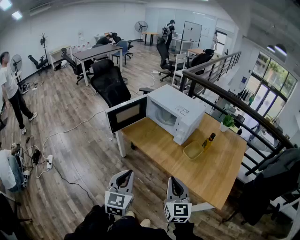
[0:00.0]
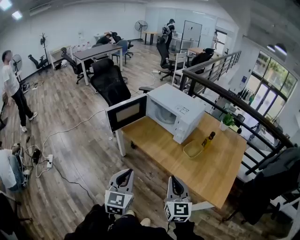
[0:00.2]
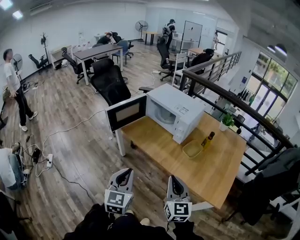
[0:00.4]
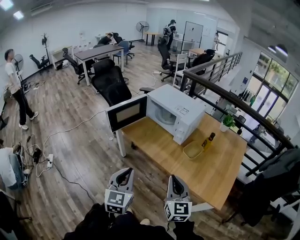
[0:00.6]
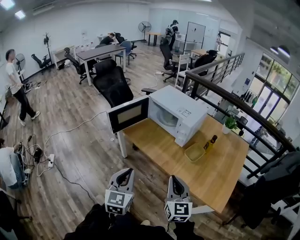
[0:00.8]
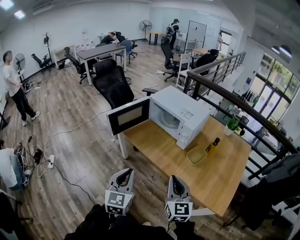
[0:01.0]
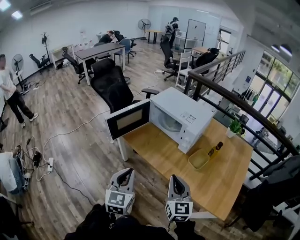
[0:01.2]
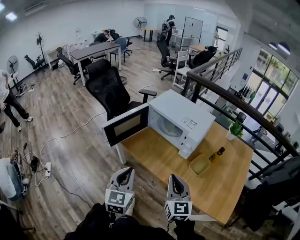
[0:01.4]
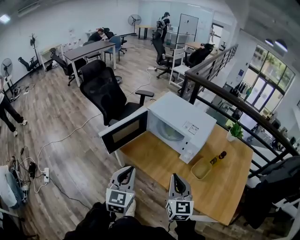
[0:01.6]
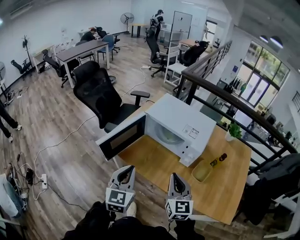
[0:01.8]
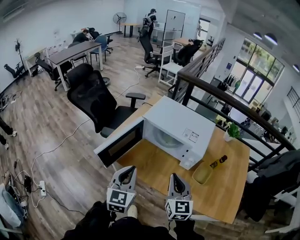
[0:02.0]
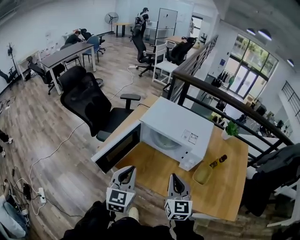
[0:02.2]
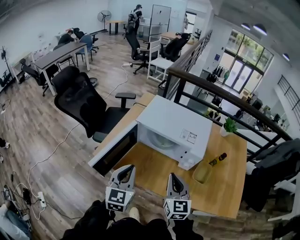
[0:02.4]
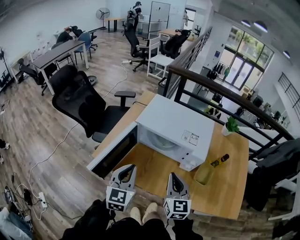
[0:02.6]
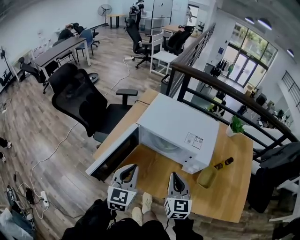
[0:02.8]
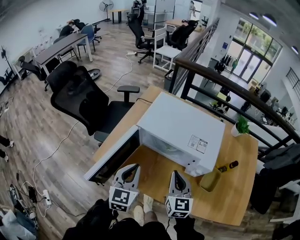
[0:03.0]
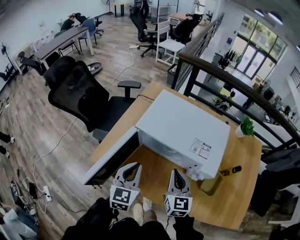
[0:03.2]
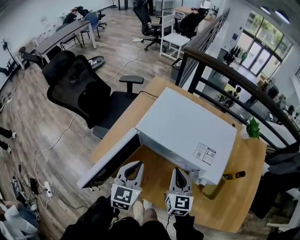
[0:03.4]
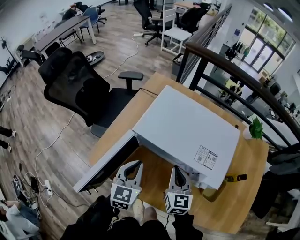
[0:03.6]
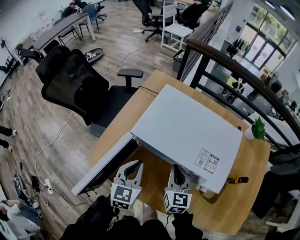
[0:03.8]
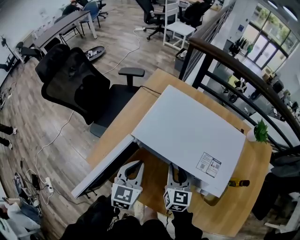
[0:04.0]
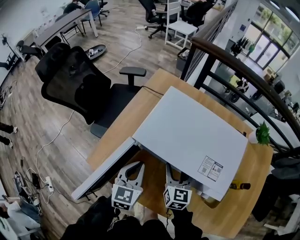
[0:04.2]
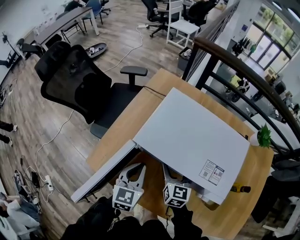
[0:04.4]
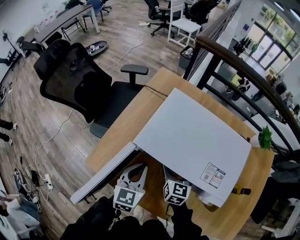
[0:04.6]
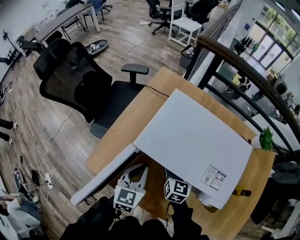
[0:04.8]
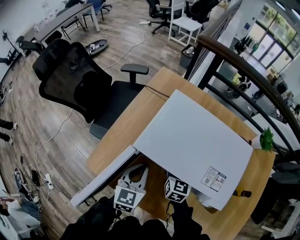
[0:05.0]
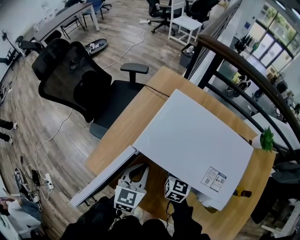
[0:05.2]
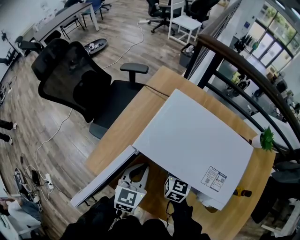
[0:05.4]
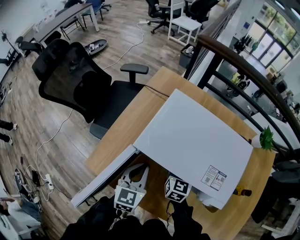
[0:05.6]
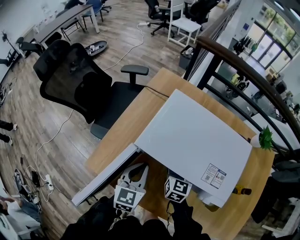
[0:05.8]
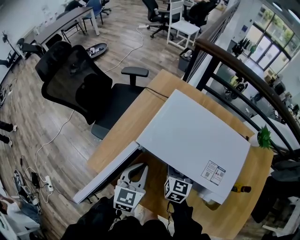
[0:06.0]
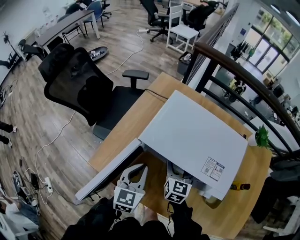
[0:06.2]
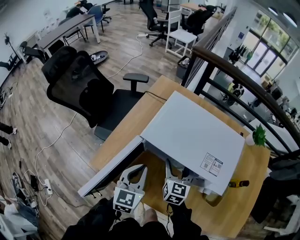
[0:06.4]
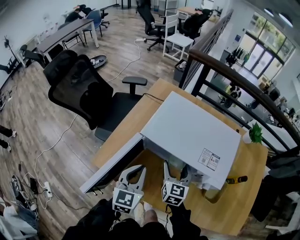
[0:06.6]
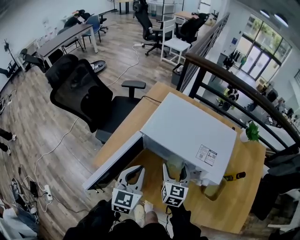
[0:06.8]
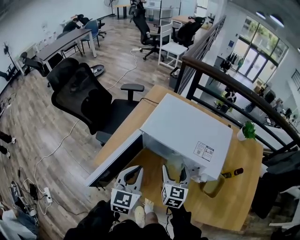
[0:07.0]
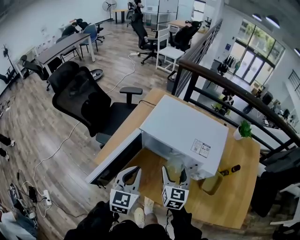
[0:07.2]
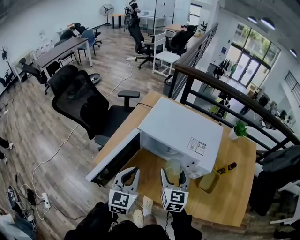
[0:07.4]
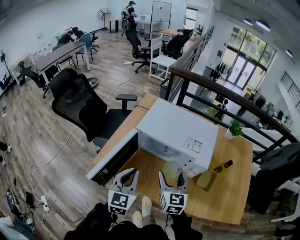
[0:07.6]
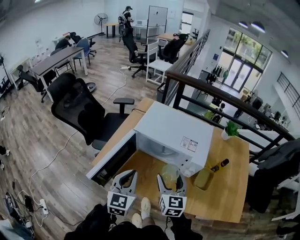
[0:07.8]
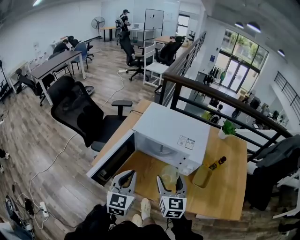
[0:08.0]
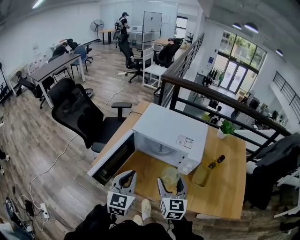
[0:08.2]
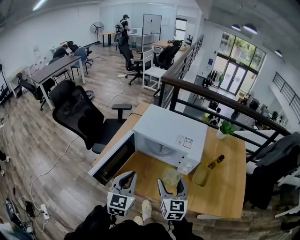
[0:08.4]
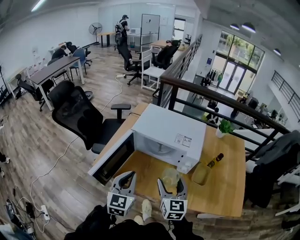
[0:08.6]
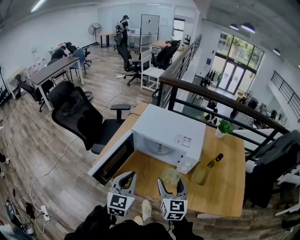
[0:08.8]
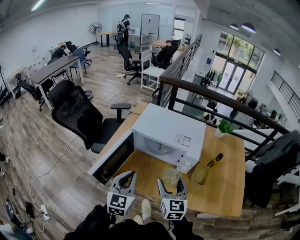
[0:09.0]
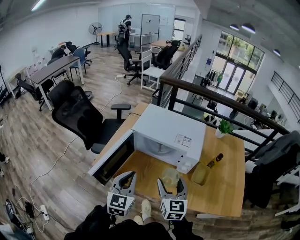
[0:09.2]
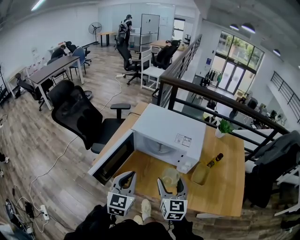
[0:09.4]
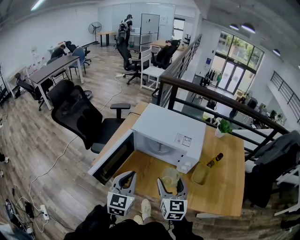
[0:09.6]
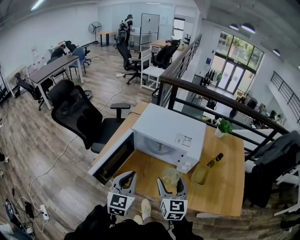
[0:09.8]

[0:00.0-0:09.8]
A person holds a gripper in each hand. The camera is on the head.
0:00.0 to 0:01.4: The two grippers go roughly 20 cm forward.
0:01.4 to 0:02.8: The grippers both shift forward by some 30 cm.
0:02.8 to 0:04.2: Both grippers move forward and downward, about 25 cm. The right gripper opens its fingers.
0:04.2 to 0:05.6: The right gripper moves forward, some 5 cm.
0:05.6 to 0:07.0: Both grippers travel together backward and upward, roughly 20 cm.
0:07.0 to 0:08.4: Both grippers move backward and upward, some 20 cm.
0:08.4 to 0:09.8: Neither gripper changes place.

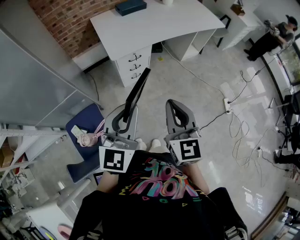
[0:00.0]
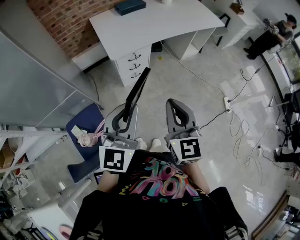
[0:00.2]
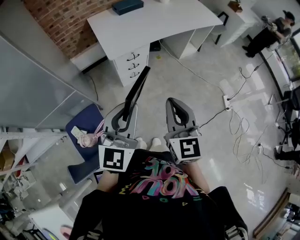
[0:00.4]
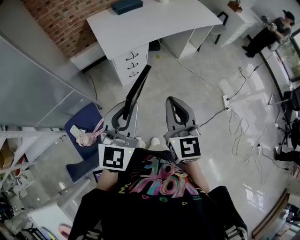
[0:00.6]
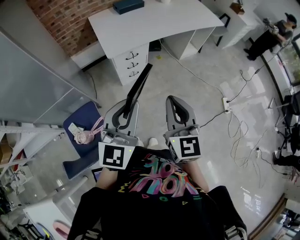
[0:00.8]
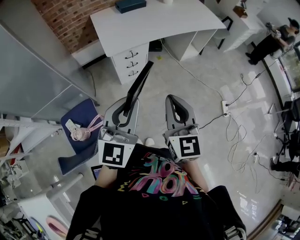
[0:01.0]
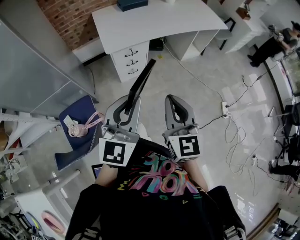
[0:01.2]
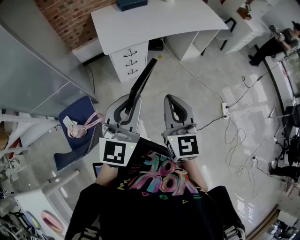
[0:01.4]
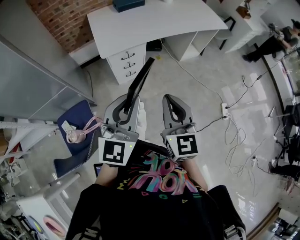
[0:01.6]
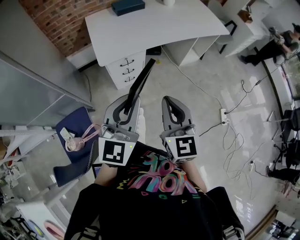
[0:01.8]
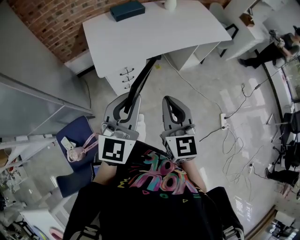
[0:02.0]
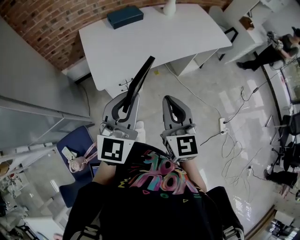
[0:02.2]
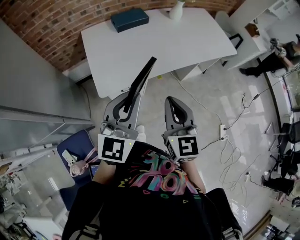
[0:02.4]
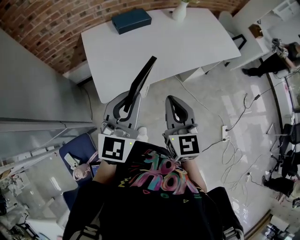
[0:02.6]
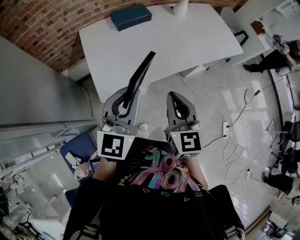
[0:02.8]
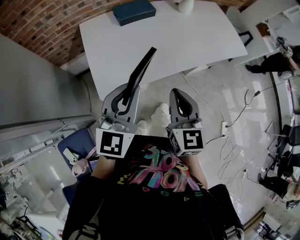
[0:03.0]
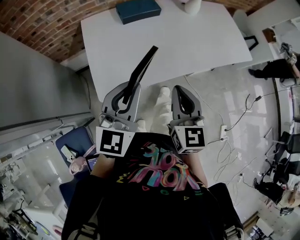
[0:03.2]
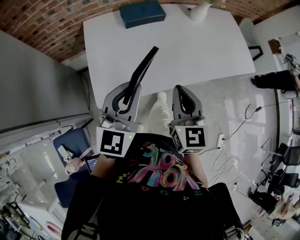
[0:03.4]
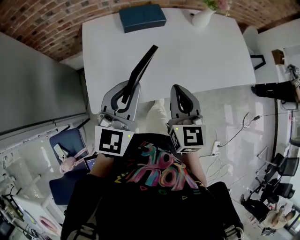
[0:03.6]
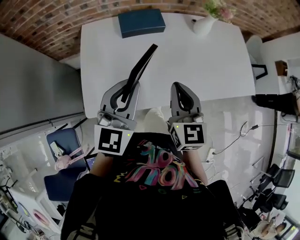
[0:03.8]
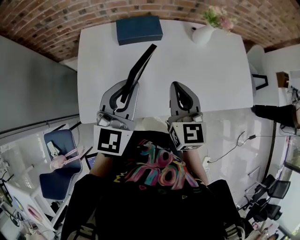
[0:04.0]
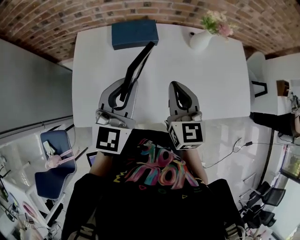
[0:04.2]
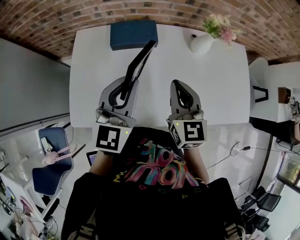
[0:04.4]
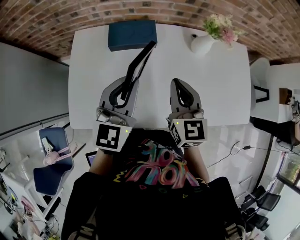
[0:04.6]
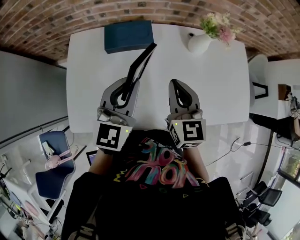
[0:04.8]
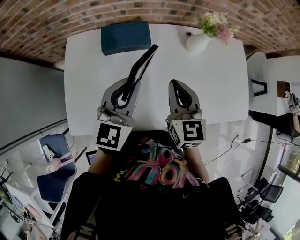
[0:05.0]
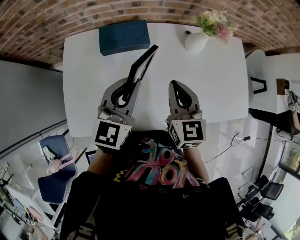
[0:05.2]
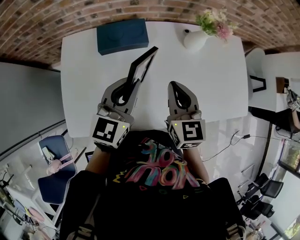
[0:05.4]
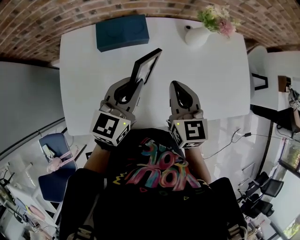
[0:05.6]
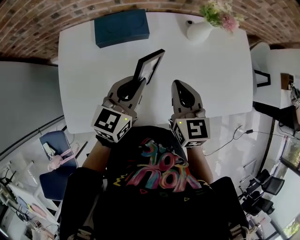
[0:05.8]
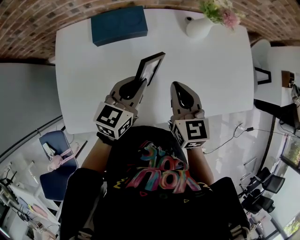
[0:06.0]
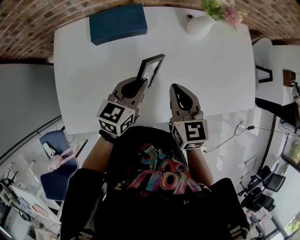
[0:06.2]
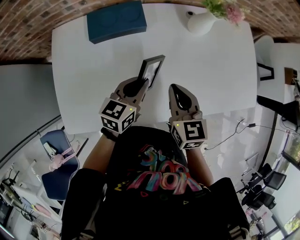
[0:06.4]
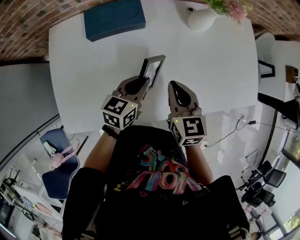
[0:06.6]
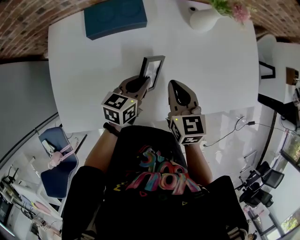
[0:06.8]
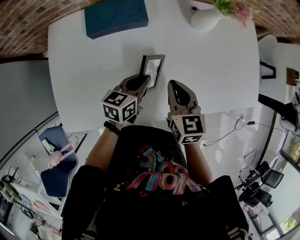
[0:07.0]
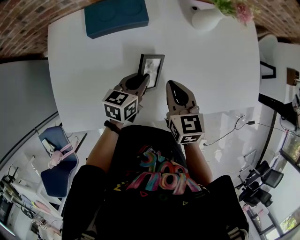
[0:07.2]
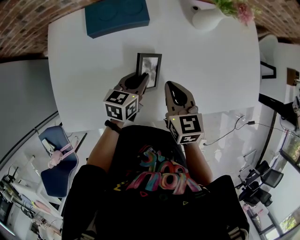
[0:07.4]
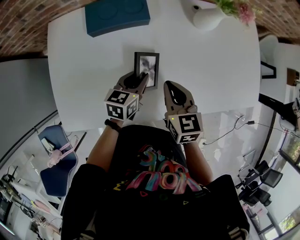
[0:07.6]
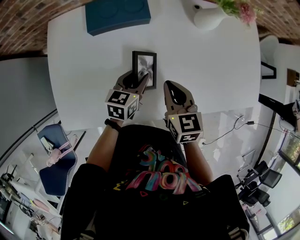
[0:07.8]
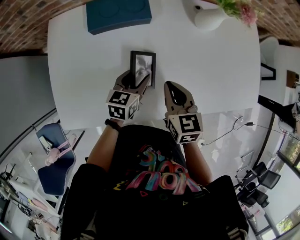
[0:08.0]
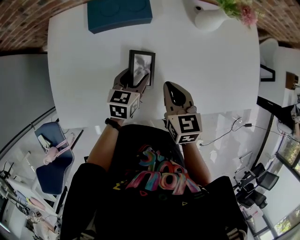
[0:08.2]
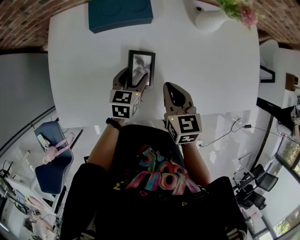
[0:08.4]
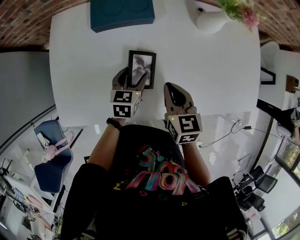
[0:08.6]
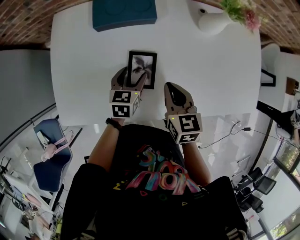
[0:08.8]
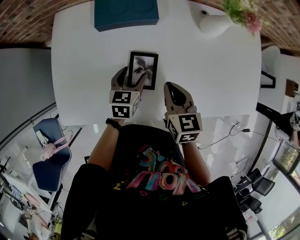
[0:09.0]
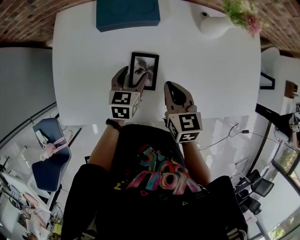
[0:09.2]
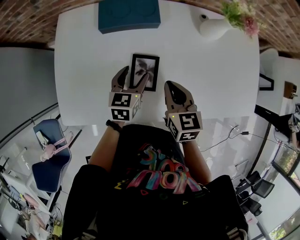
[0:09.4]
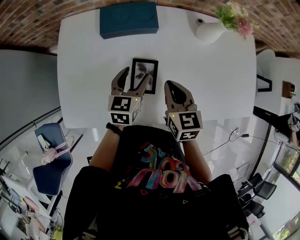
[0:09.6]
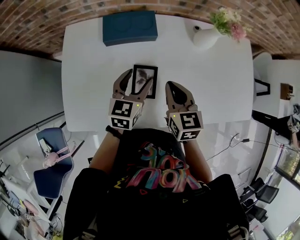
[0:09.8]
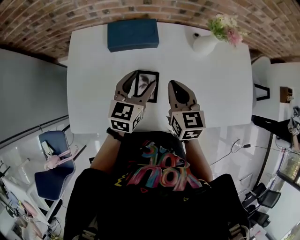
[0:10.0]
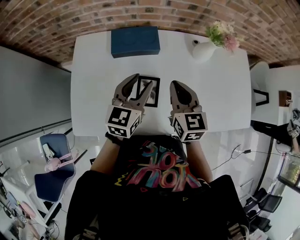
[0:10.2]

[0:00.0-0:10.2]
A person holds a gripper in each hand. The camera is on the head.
0:00.0 to 0:01.4: The grippers both shift to the right by some 10 cm.
0:01.4 to 0:03.0: The two grippers travel together, forward, approximately 50 cm.
0:03.0 to 0:04.4: Both grippers move forward and to the right, some 40 cm. The right gripper turns by some 20 degrees. The left gripper swivels some 20 degrees.
0:04.4 to 0:05.8: The right gripper shifts roughly 5 cm downward; the left gripper shifts roughly 10 cm downward, and turns by some 30 degrees.
0:05.8 to 0:07.2: The left gripper travels downward by roughly 15 cm, and swivels approximately 20 degrees; the right gripper travels downward by roughly 10 cm.
0:07.2 to 0:08.8: The left gripper is displaced to the left by roughly 5 cm, rotates about 20 degrees, and opens up.
0:08.8 to 0:10.2: The right gripper travels upward by some 15 cm. Meanwhile the left gripper moves upward, roughly 20 cm, and swivels roughly 30 degrees.

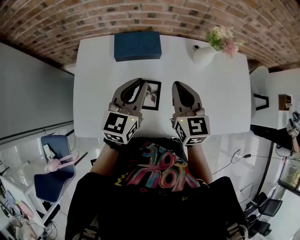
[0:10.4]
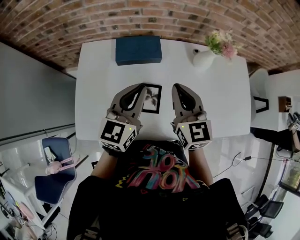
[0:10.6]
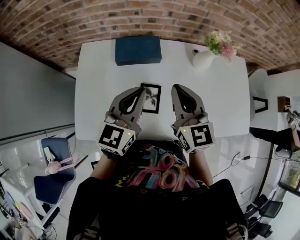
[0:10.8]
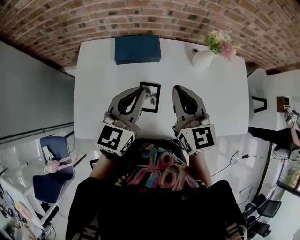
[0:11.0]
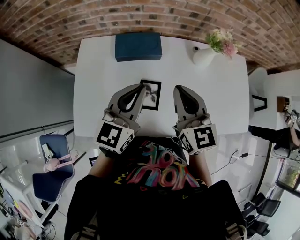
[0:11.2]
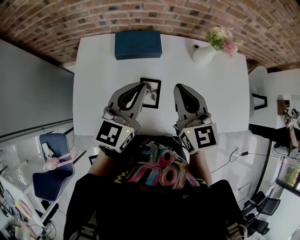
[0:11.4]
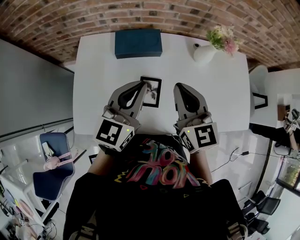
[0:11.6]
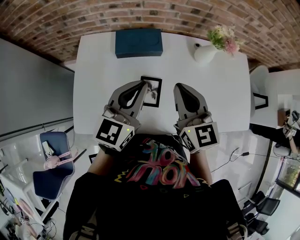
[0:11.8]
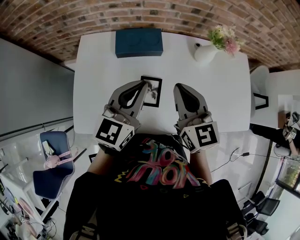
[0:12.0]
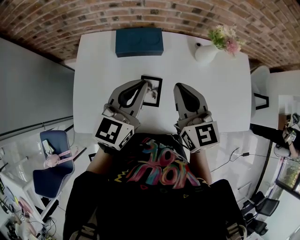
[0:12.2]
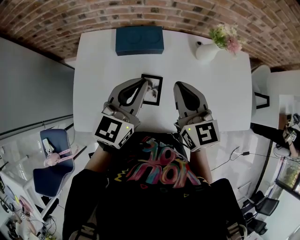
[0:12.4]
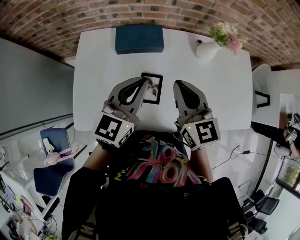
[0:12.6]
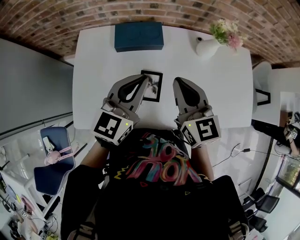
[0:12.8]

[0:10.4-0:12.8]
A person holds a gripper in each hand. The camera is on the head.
0:10.4 to 0:11.6: The right gripper goes roughly 5 cm upward; the left gripper ends up roughly 5 cm from where it was.
0:11.6 to 0:12.8: The grippers stay close to where they were, moving slightly.

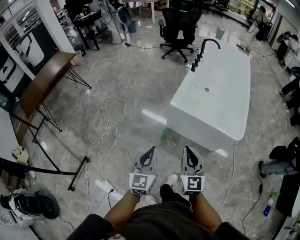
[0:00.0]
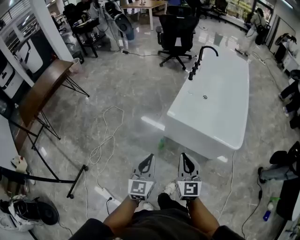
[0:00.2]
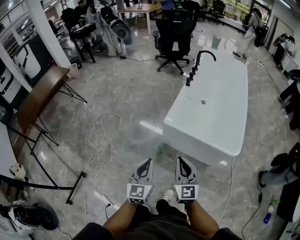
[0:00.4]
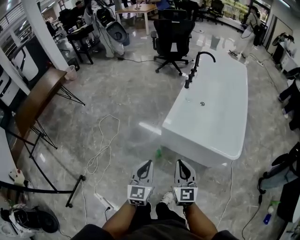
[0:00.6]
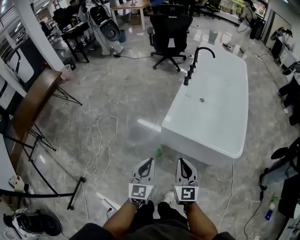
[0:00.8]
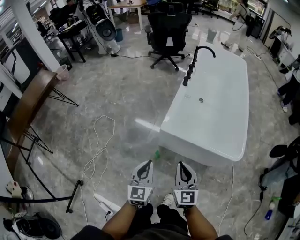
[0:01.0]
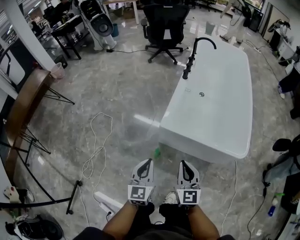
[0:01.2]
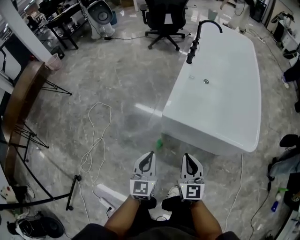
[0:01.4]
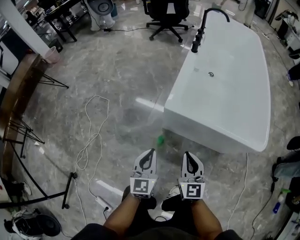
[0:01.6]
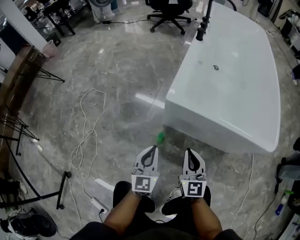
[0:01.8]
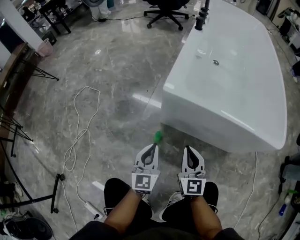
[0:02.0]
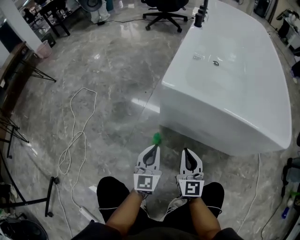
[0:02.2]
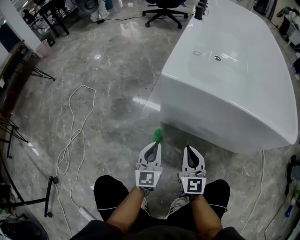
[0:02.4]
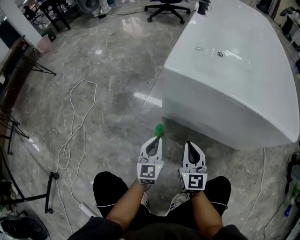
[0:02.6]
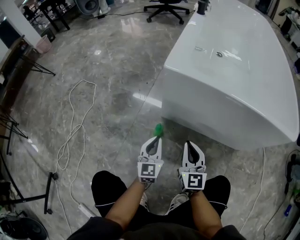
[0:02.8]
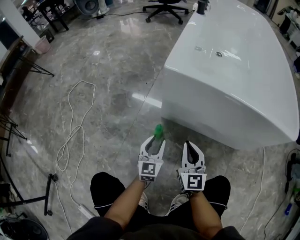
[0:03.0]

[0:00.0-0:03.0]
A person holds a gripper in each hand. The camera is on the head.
0:00.0 to 0:01.6: Both grippers move downward and forward, about 40 cm.
0:01.6 to 0:03.0: Both grippers travel together downward, about 35 cm. The left gripper opens up.
